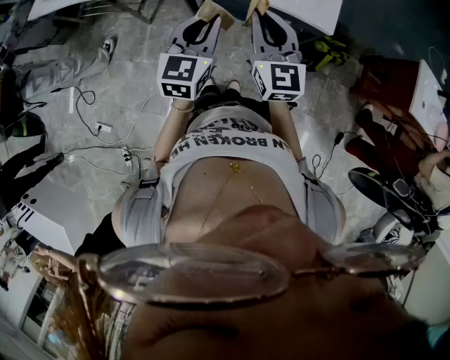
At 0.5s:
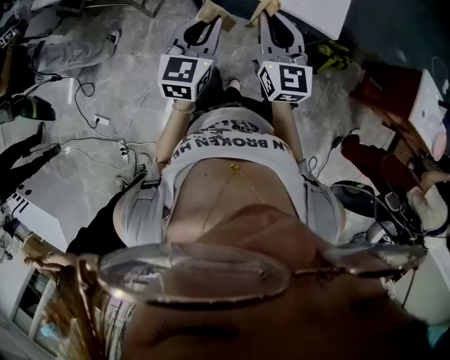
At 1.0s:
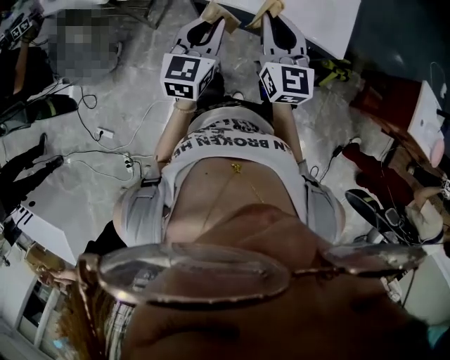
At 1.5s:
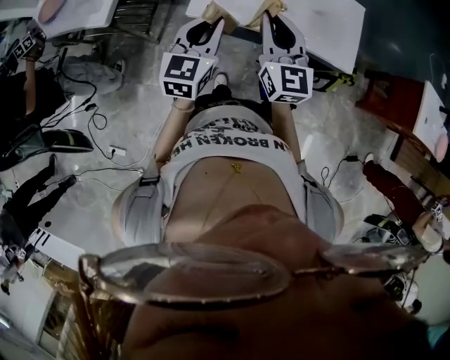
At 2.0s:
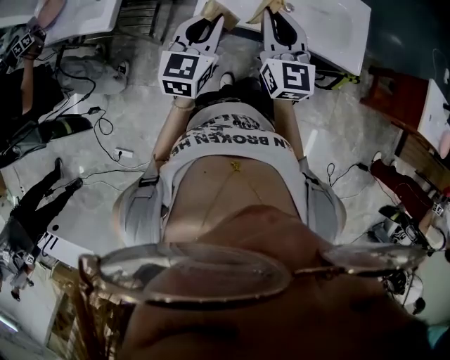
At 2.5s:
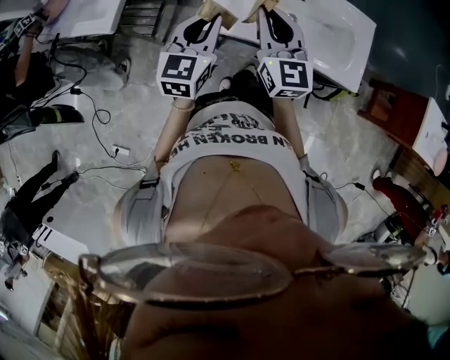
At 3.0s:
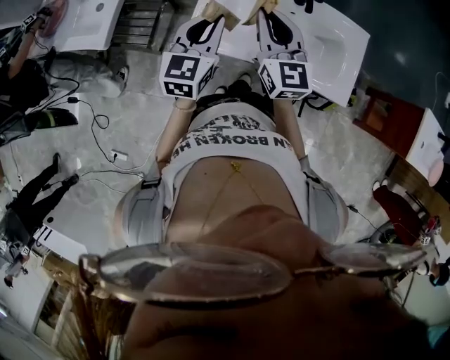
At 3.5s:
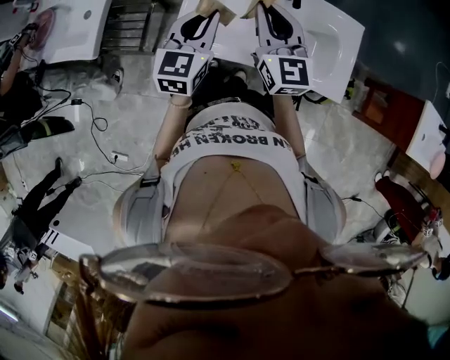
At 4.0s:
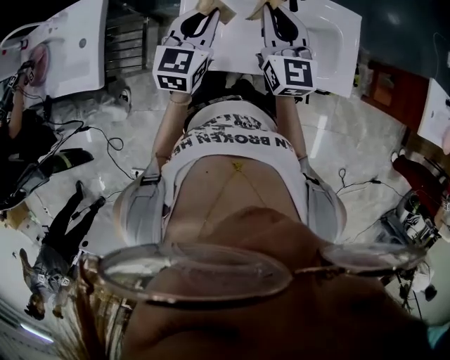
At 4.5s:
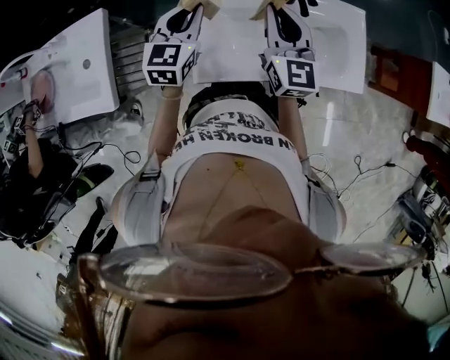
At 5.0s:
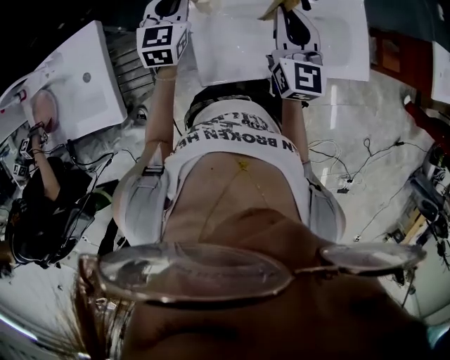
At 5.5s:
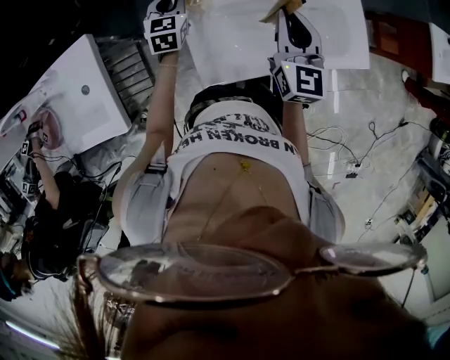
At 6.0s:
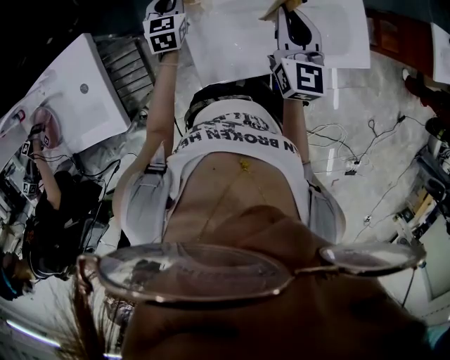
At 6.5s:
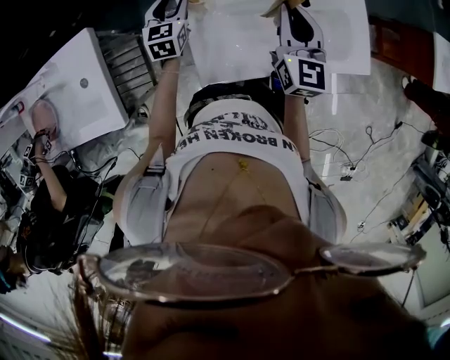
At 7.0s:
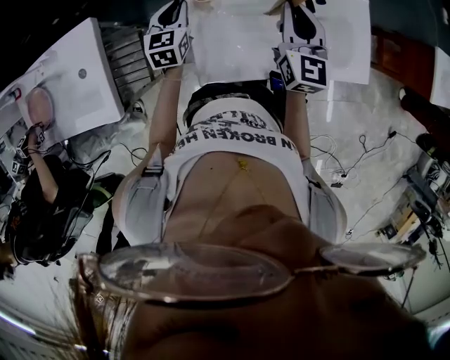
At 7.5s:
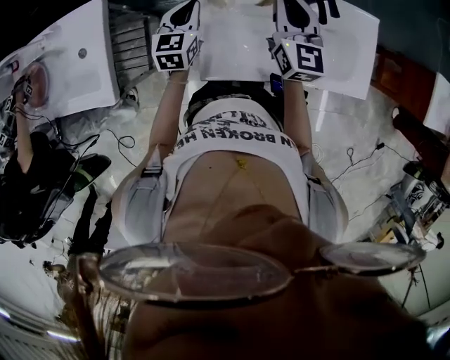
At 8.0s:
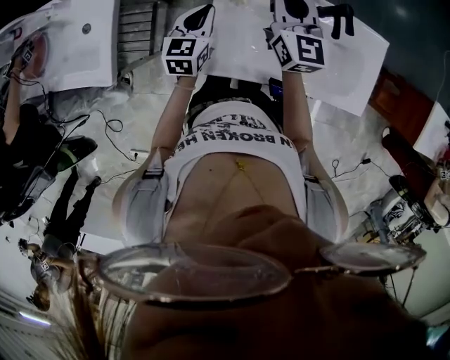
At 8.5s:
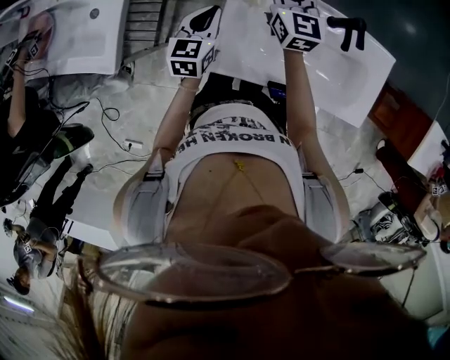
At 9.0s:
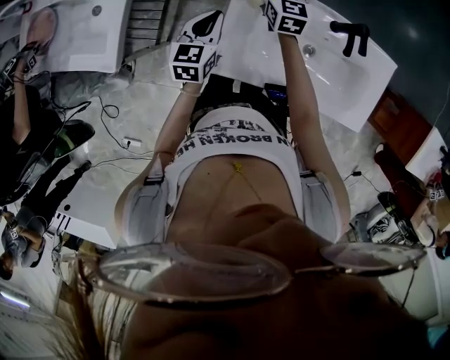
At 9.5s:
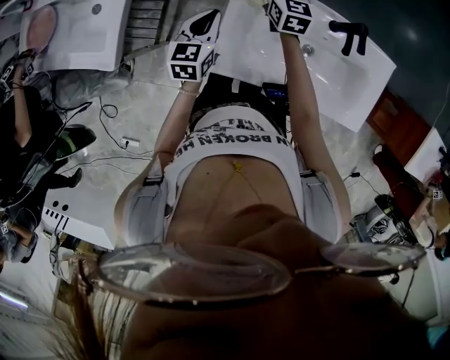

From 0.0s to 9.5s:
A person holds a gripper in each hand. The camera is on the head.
From 0.0s to 2.0s: Both grippers move forward and to the left, about 25 cm.
From 2.0s to 4.0s: The grippers both shift forward by roughly 20 cm.
From 4.0s to 5.5s: The left gripper goes some 25 cm forward, downward and to the left; the right gripper swivels about 20 degrees.
From 5.5s to 7.5s: The right gripper shifts roughly 10 cm to the left and forward. The left gripper moves backward, roughly 10 cm, and opens, then closes again.
From 7.5s to 9.5s: The left gripper moves backward, approximately 5 cm; the right gripper is displaced downward, forward and to the left by roughly 20 cm, changes its angle by approximately 20 degrees, and opens.

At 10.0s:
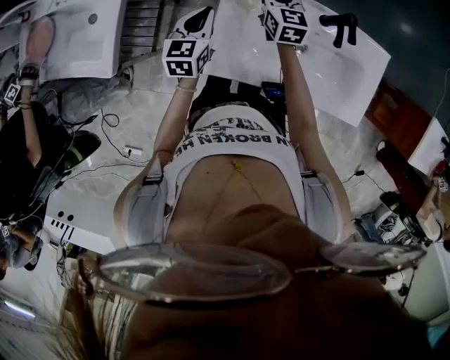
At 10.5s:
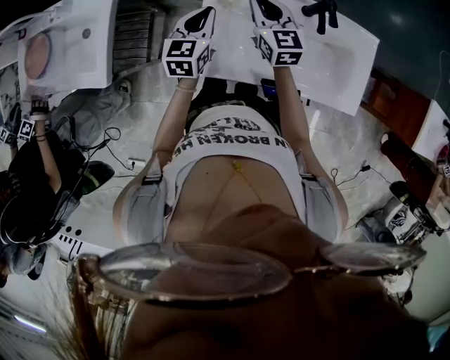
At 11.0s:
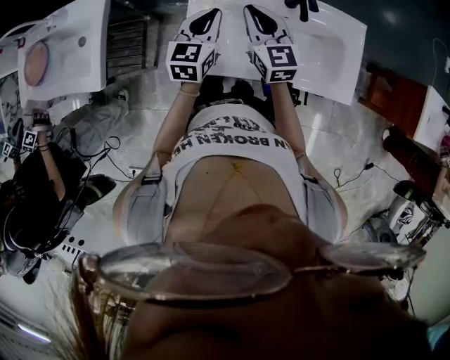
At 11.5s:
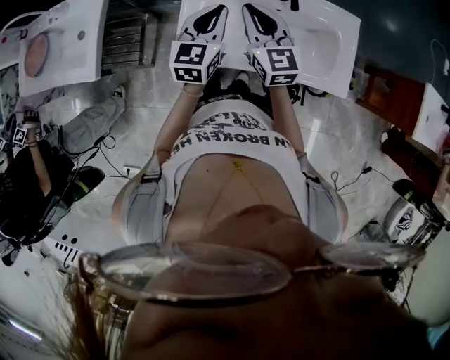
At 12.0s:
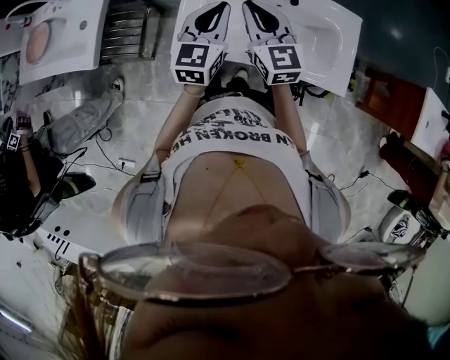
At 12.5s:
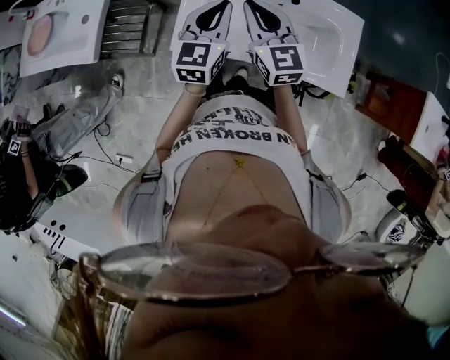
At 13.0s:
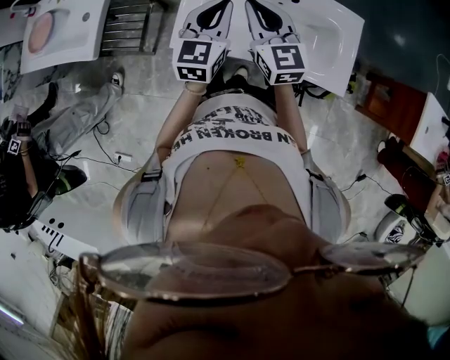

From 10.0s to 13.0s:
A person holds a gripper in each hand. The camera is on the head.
From 10.0s to 11.5s: The left gripper heads backward, upward and to the right, covering approximately 20 cm; the right gripper shifts approximately 30 cm backward and upward.
From 11.5s to 13.0s: The grippers both shift to the right by roughly 10 cm.

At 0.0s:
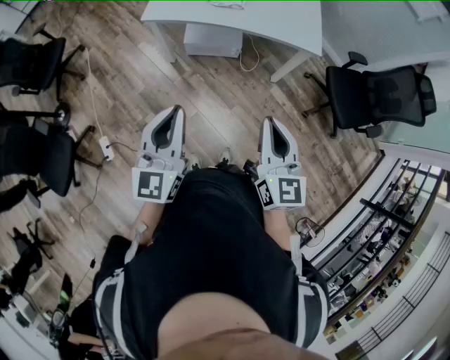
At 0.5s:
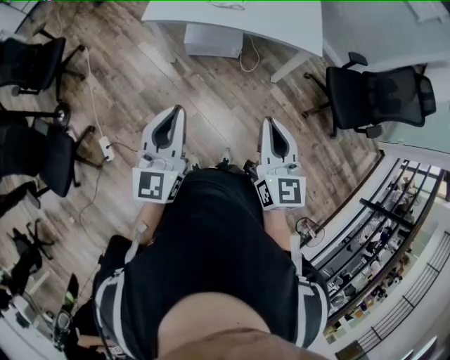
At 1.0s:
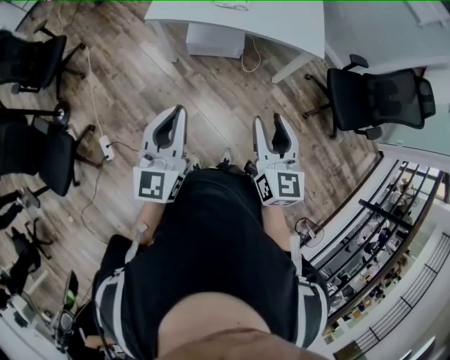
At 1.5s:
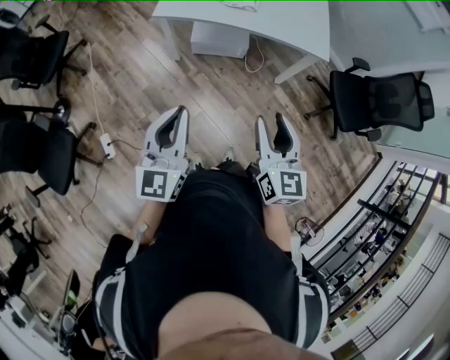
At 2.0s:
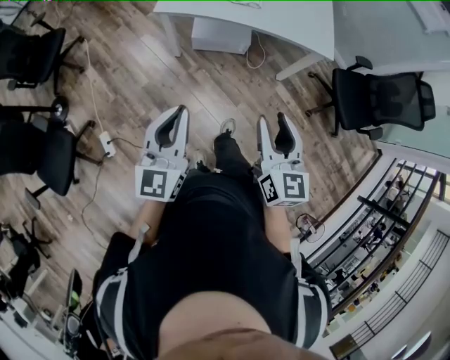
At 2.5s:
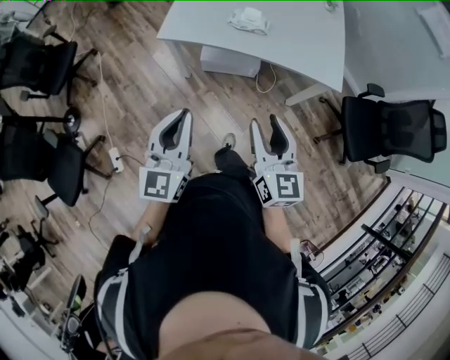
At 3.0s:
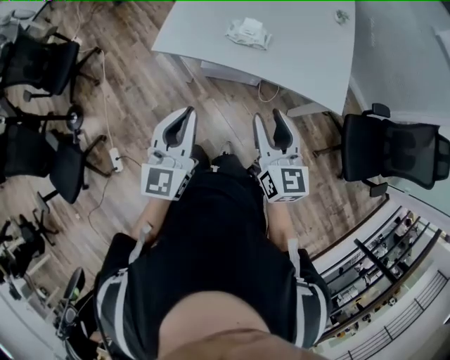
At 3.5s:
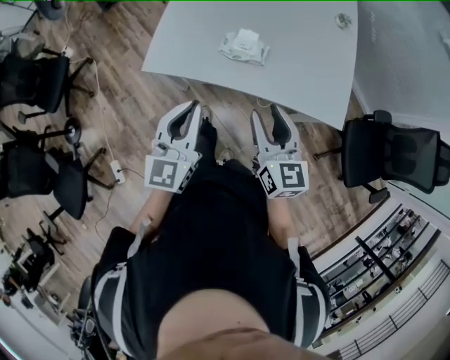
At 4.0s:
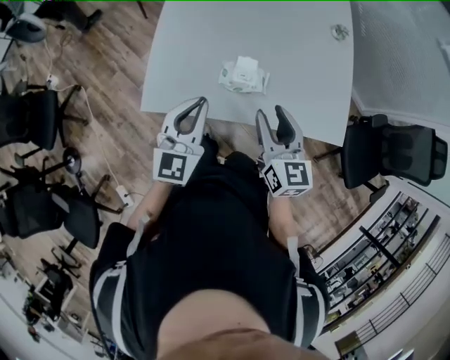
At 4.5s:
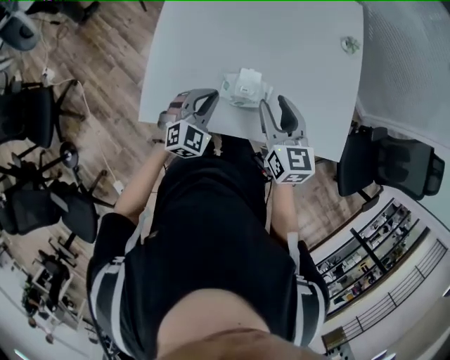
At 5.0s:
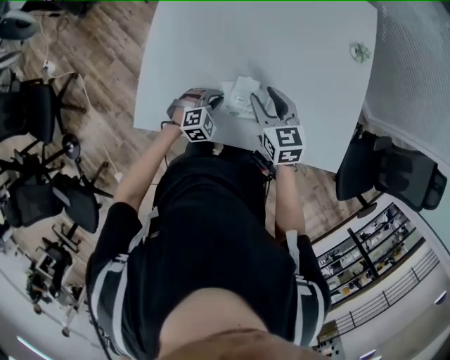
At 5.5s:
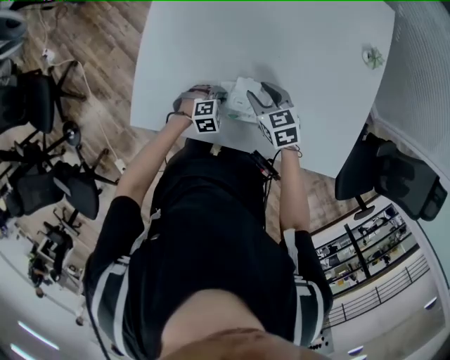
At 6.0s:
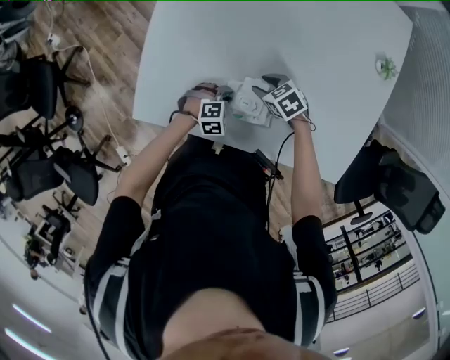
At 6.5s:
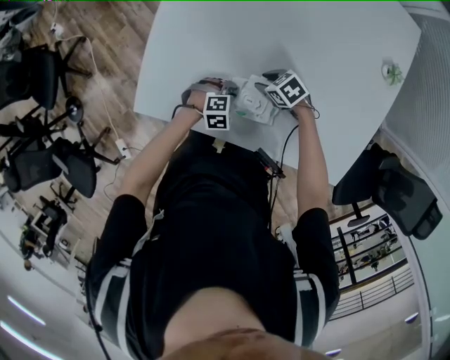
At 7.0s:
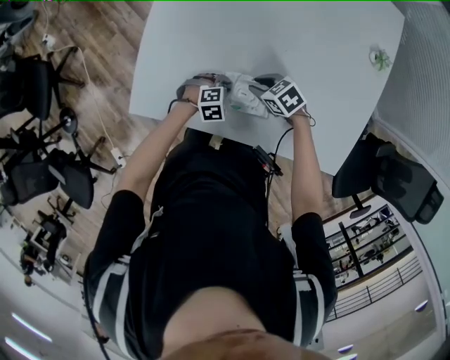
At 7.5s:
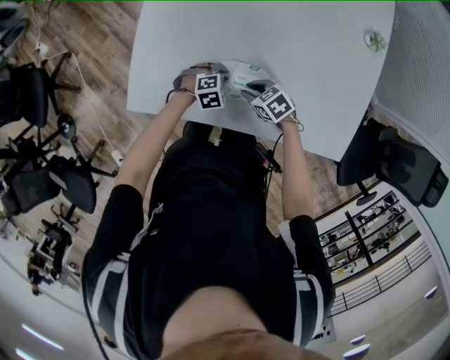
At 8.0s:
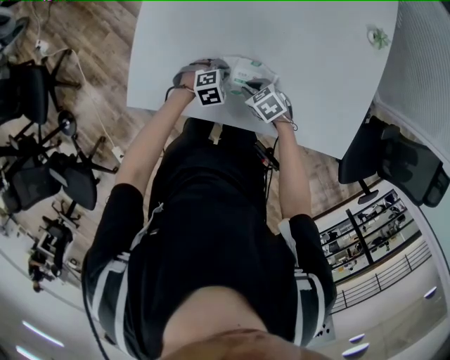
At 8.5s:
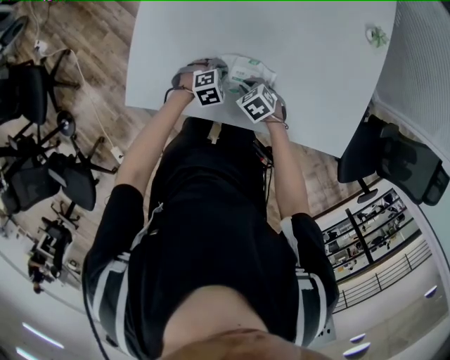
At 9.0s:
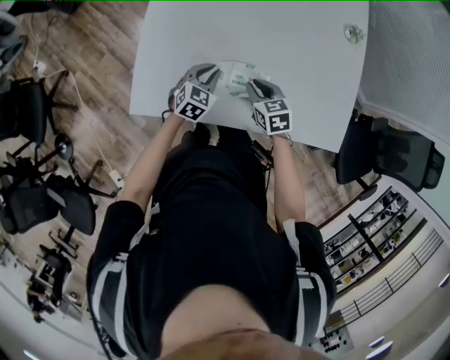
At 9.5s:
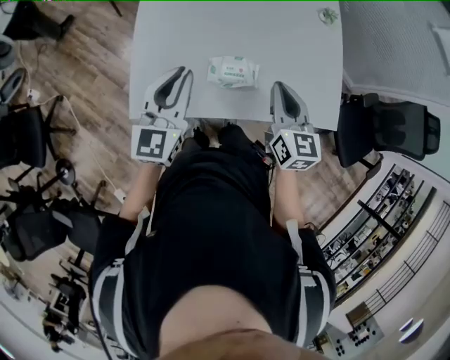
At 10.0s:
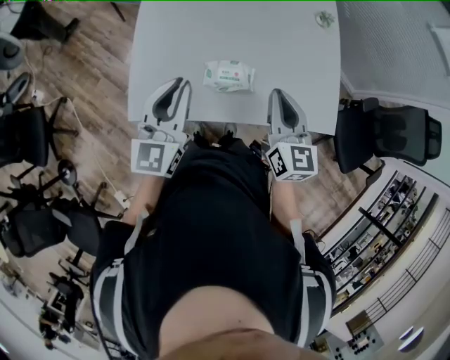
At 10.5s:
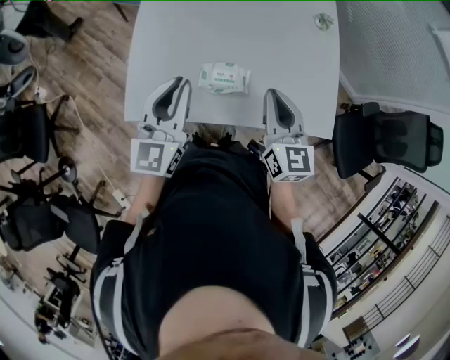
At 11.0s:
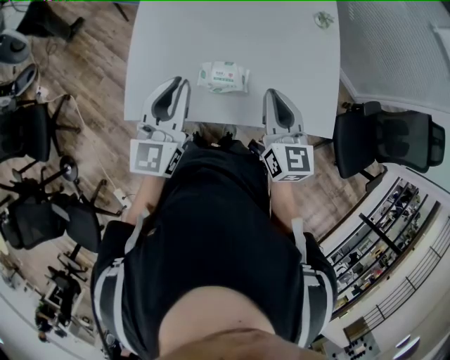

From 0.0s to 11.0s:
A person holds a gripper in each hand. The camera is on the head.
From 0.0s to 2.0s: Both grippers move to the left, roughly 10 cm. The right gripper opens up.
From 2.0s to 3.5s: Both grippers are carried forward, some 50 cm.
From 3.5s to 5.5s: The left gripper moves downward and forward, approximately 60 cm, and tips its fingers downward by approximately 60 degrees. The right gripper travels forward and downward by approximately 50 cm, and tips its fingers downward by roughly 30 degrees.
From 5.5s to 7.5s: The right gripper ends up approximately 15 cm from where it was, and turns by roughly 30 degrees.
From 7.5s to 9.0s: Both grippers travel together upward, some 10 cm. The right gripper rotates approximately 30 degrees. Meanwhile the left gripper turns by approximately 40 degrees.
From 9.0s to 11.0s: The grippers both shift upward by approximately 25 cm. The right gripper tilts its fingers roughly 30 degrees upward; the left gripper points its fingers approximately 40 degrees further upward.

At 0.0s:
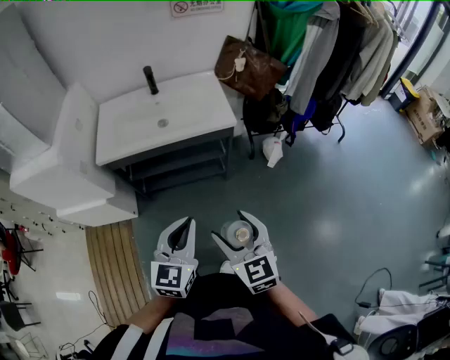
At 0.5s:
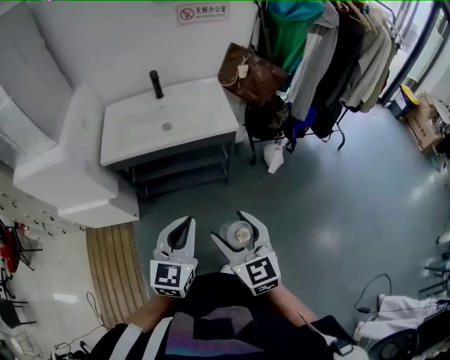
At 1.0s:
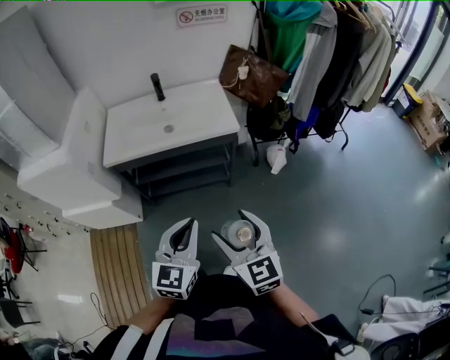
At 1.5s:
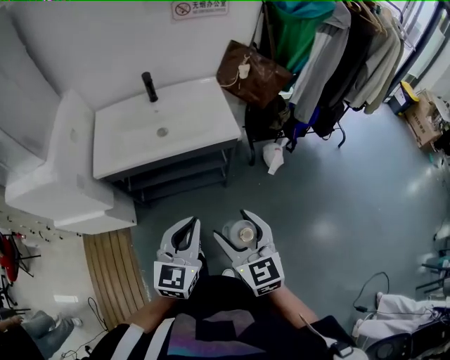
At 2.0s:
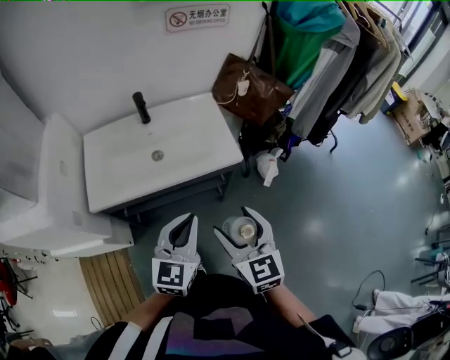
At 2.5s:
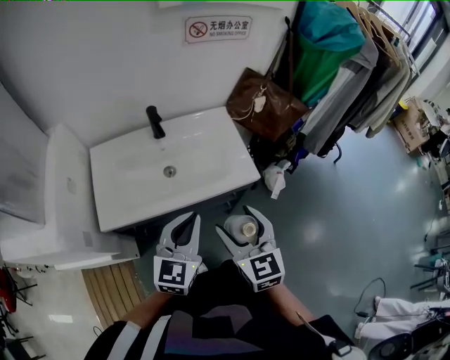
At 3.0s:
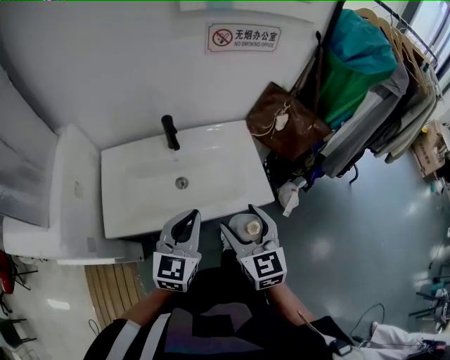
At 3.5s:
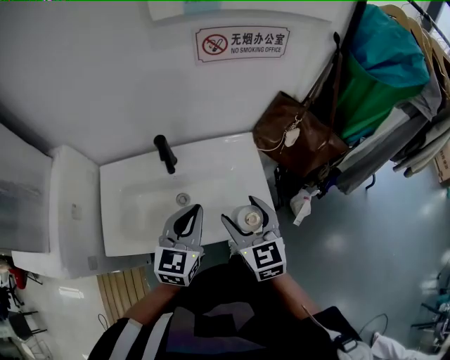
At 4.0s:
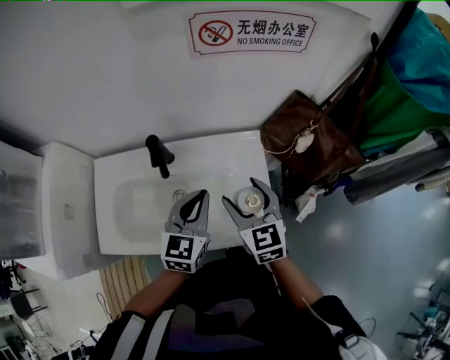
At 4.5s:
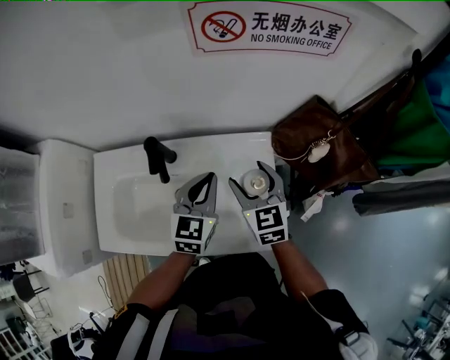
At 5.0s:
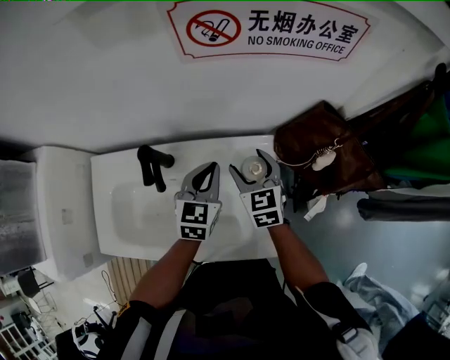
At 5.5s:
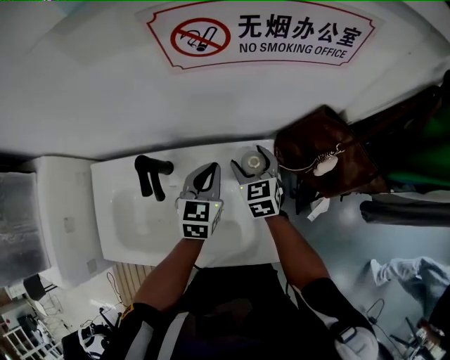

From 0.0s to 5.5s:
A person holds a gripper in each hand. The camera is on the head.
From 0.0s to 2.0s: Both grippers travel together forward, some 20 cm.
From 2.0s to 3.5s: The two grippers go some 30 cm forward.
From 3.5s to 5.5s: The grippers both shift forward and downward by some 30 cm.
